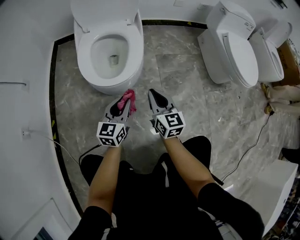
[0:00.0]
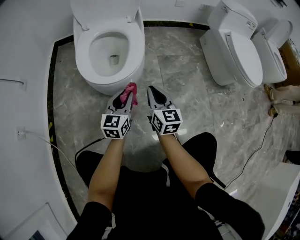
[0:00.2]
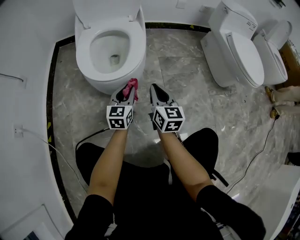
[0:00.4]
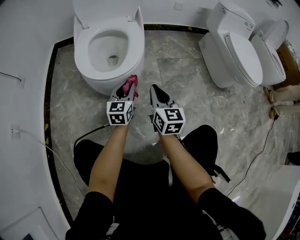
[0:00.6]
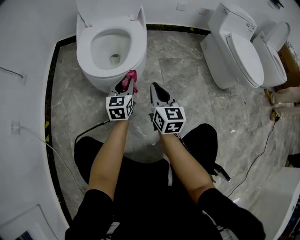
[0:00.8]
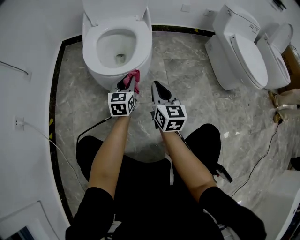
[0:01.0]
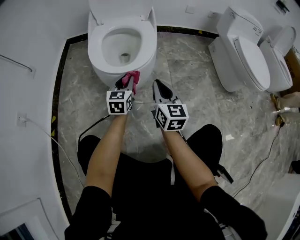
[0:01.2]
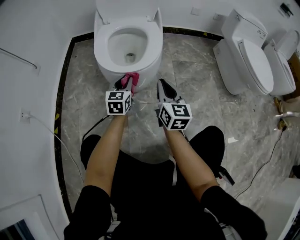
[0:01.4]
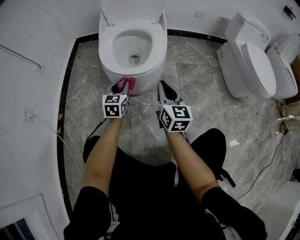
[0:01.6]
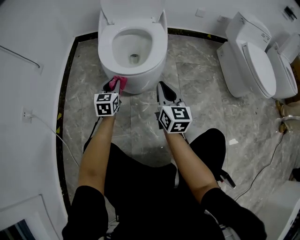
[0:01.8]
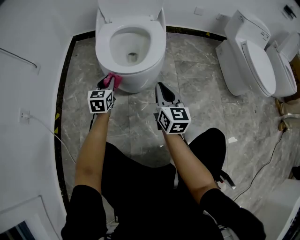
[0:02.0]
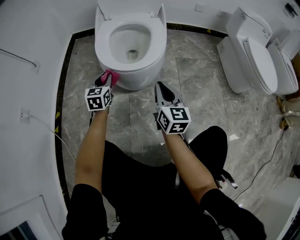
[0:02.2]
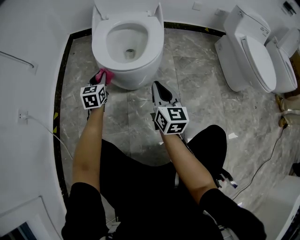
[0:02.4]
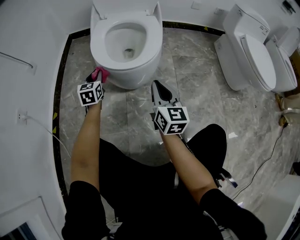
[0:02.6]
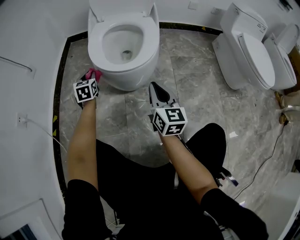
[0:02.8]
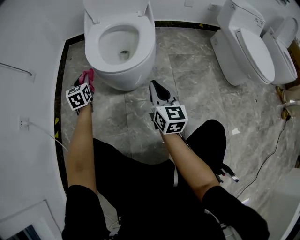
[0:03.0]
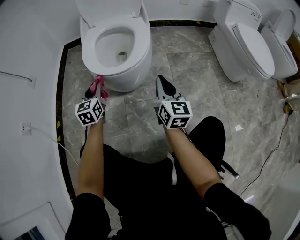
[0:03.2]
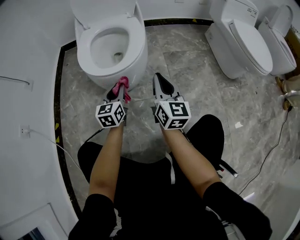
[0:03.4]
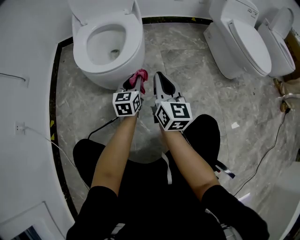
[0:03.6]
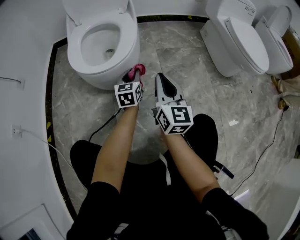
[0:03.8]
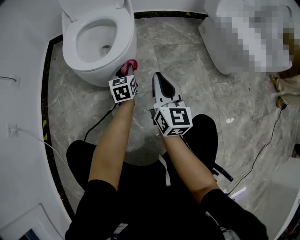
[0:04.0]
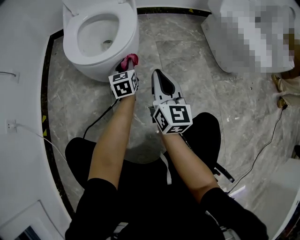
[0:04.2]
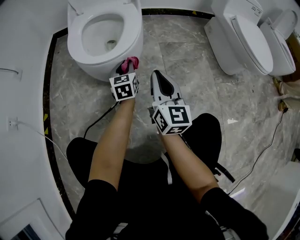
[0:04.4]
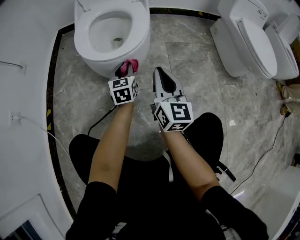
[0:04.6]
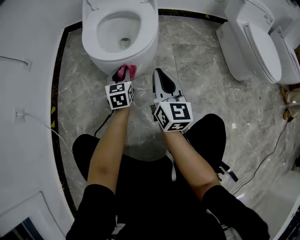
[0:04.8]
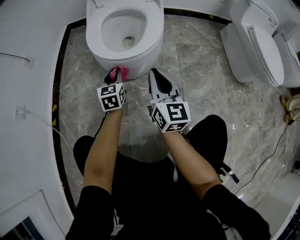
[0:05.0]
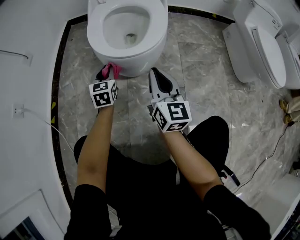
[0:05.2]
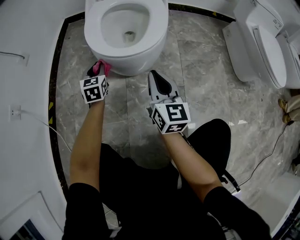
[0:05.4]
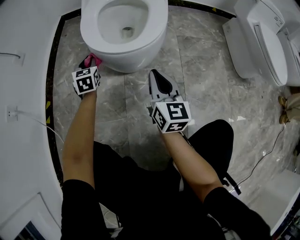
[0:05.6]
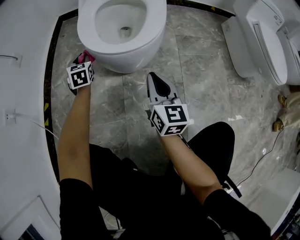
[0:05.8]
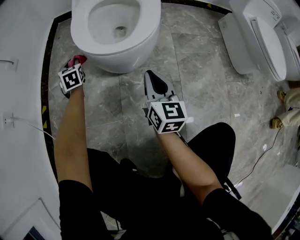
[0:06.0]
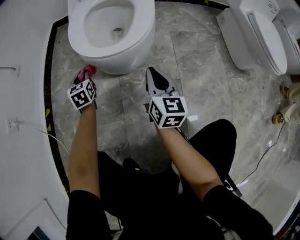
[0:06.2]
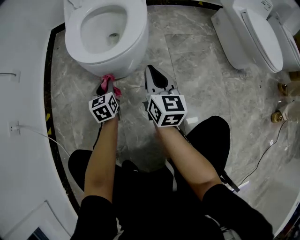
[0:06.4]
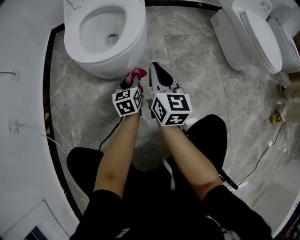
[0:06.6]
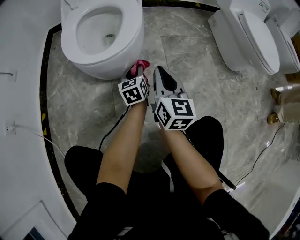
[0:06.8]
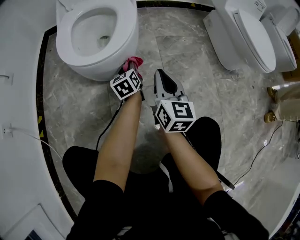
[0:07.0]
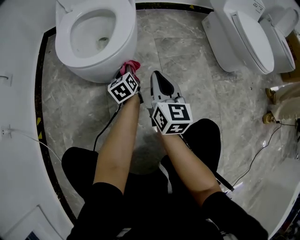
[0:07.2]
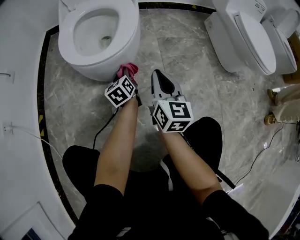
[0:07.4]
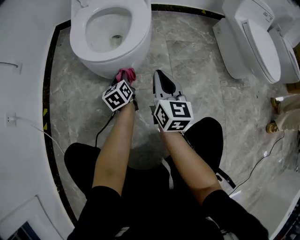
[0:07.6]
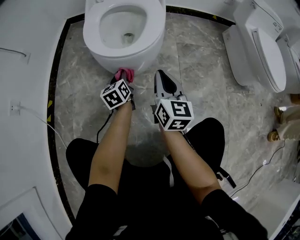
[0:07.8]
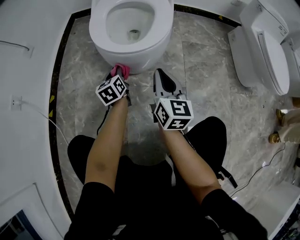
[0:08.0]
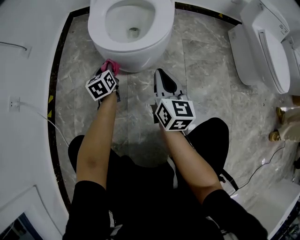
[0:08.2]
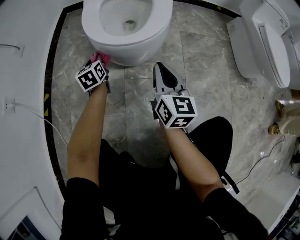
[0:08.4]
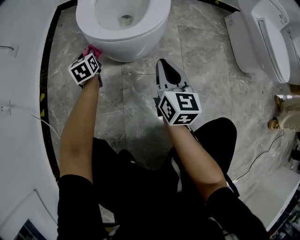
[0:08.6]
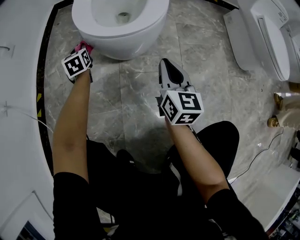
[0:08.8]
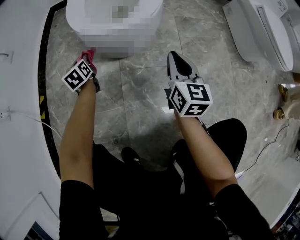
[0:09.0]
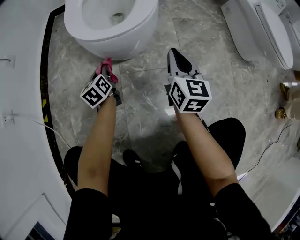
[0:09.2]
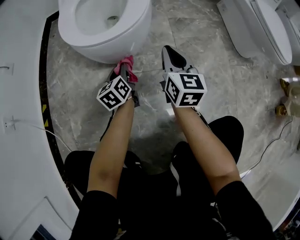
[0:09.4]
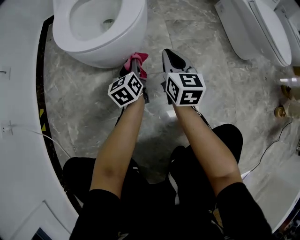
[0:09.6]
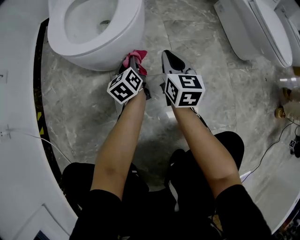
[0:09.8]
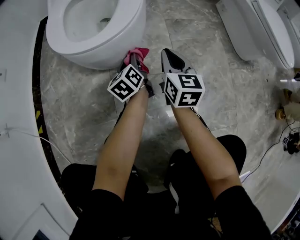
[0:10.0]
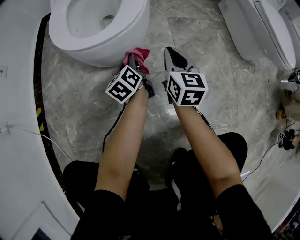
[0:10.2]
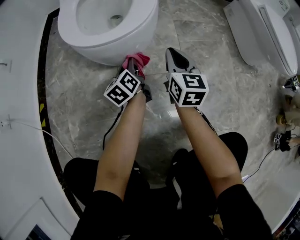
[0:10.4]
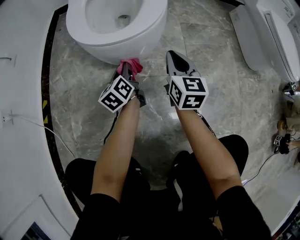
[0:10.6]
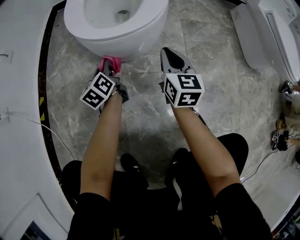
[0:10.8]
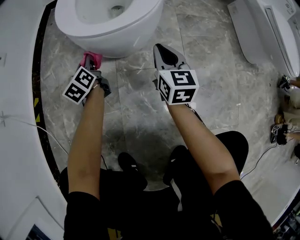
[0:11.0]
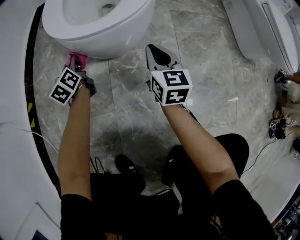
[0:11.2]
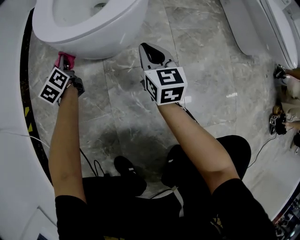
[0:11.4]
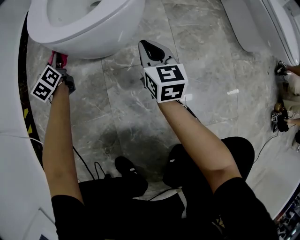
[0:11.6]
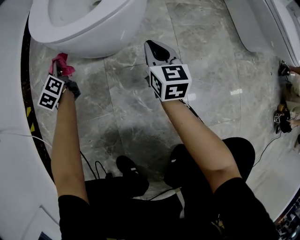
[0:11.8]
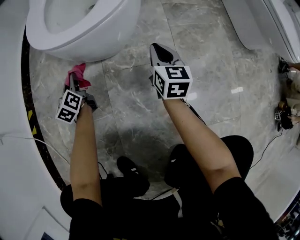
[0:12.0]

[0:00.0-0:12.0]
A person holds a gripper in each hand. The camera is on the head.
0:00.0 to 0:01.6: The right gripper changes place by about 5 cm; the left gripper shifts roughly 15 cm downward, to the left and forward.
0:01.6 to 0:03.0: The left gripper goes roughly 15 cm to the left.
0:03.0 to 0:04.4: The left gripper heads to the right, covering roughly 30 cm; the right gripper moves to the right, approximately 5 cm.
0:04.4 to 0:06.0: The right gripper is displaced to the left and downward by roughly 10 cm. The left gripper heads to the left, covering roughly 30 cm, and rotates roughly 30 degrees.
0:06.0 to 0:07.6: The right gripper travels to the right by about 5 cm. Meanwhile the left gripper is displaced to the right by approximately 25 cm, and turns by roughly 40 degrees.
0:07.6 to 0:09.0: The left gripper goes approximately 20 cm to the left.
0:09.0 to 0:10.4: The right gripper is displaced forward by roughly 5 cm. The left gripper shifts approximately 20 cm to the right, and changes its angle by some 30 degrees.
0:10.4 to 0:12.0: The left gripper moves to the left, some 20 cm. The right gripper moves downward, about 10 cm.

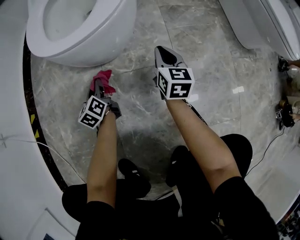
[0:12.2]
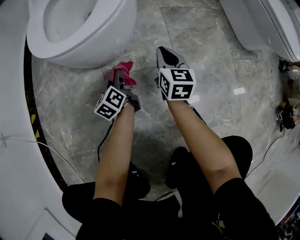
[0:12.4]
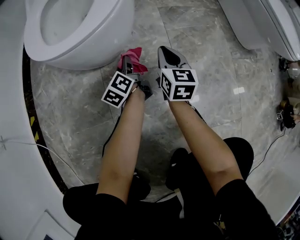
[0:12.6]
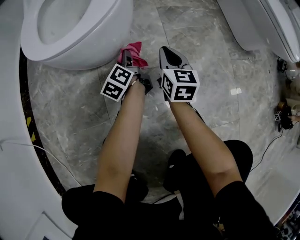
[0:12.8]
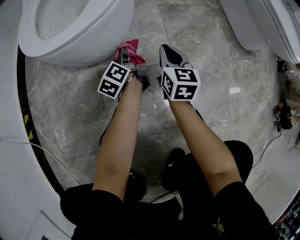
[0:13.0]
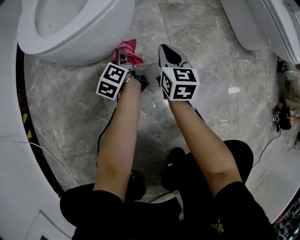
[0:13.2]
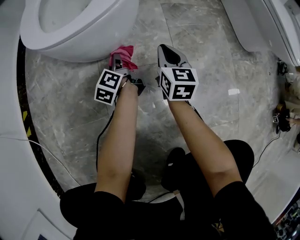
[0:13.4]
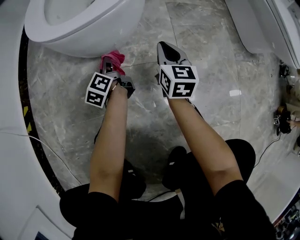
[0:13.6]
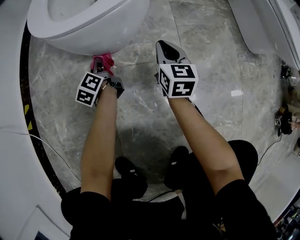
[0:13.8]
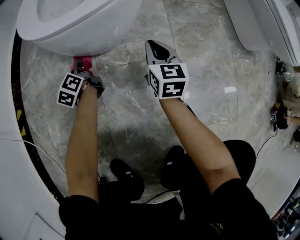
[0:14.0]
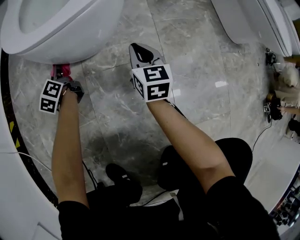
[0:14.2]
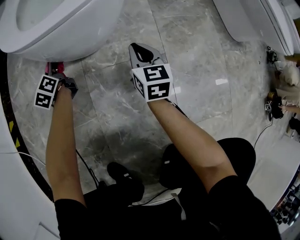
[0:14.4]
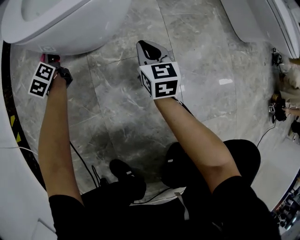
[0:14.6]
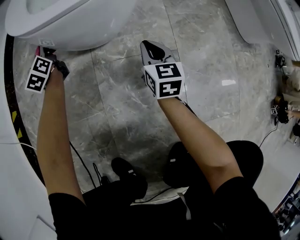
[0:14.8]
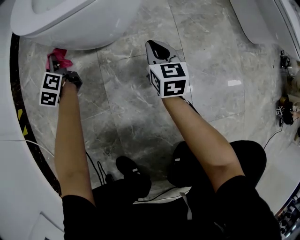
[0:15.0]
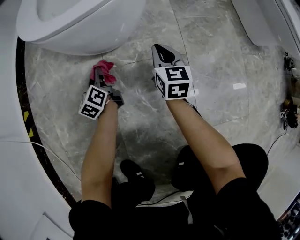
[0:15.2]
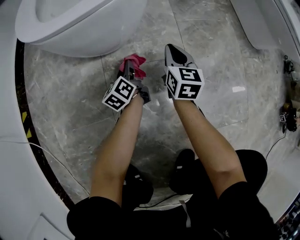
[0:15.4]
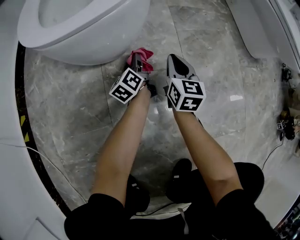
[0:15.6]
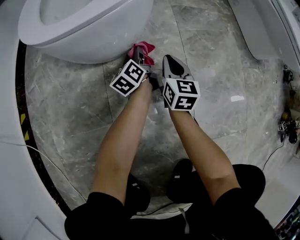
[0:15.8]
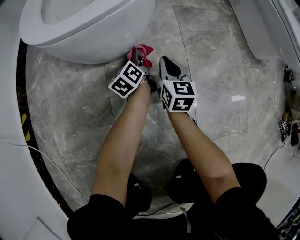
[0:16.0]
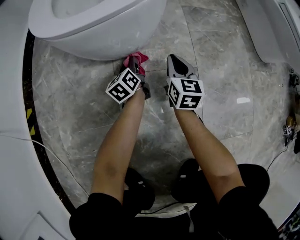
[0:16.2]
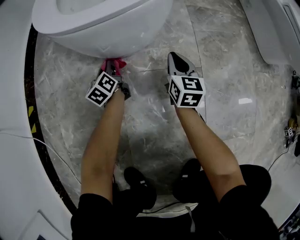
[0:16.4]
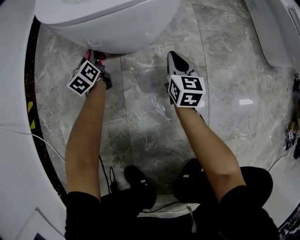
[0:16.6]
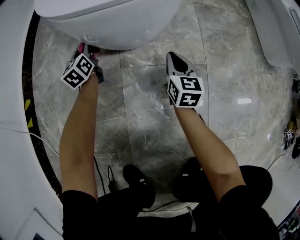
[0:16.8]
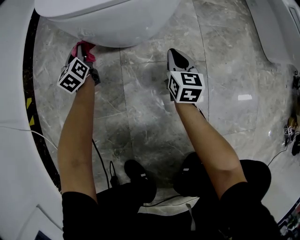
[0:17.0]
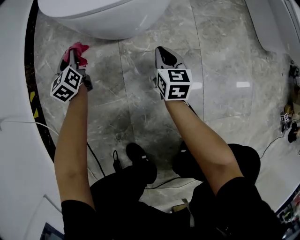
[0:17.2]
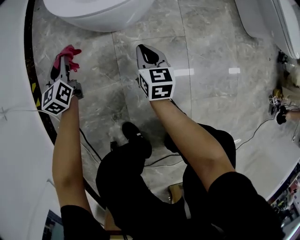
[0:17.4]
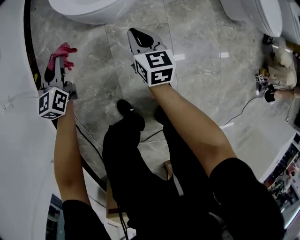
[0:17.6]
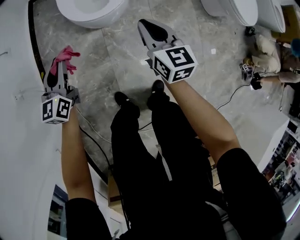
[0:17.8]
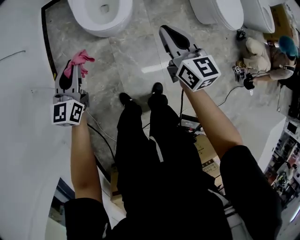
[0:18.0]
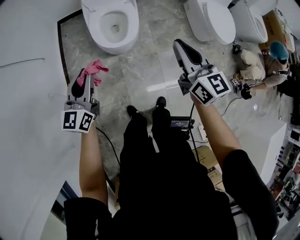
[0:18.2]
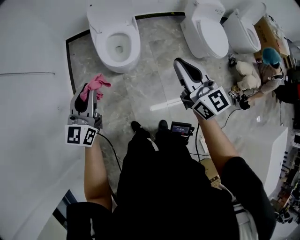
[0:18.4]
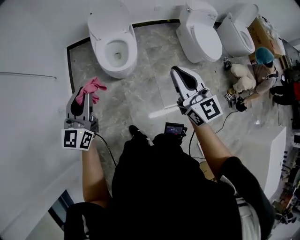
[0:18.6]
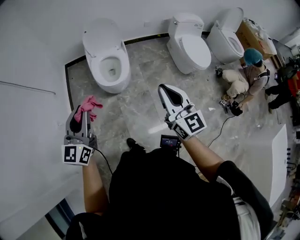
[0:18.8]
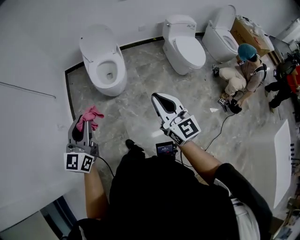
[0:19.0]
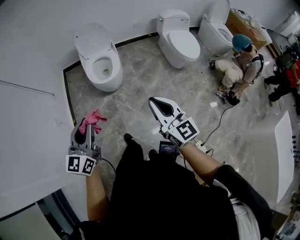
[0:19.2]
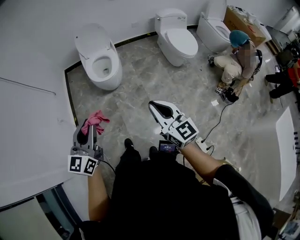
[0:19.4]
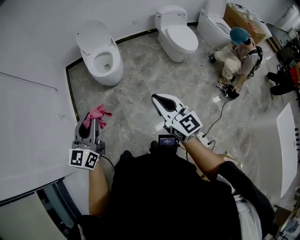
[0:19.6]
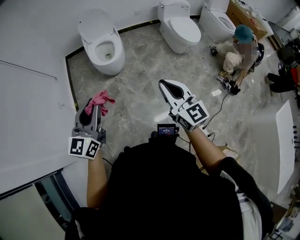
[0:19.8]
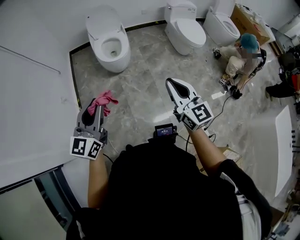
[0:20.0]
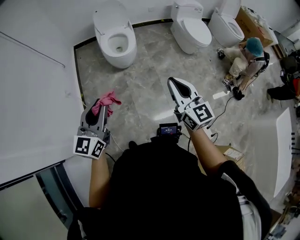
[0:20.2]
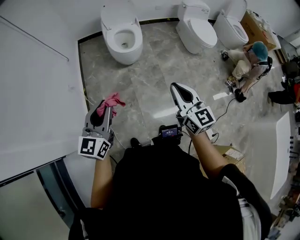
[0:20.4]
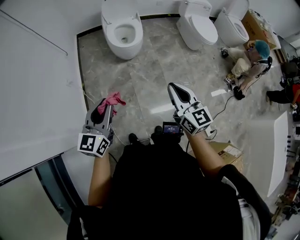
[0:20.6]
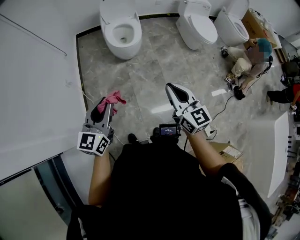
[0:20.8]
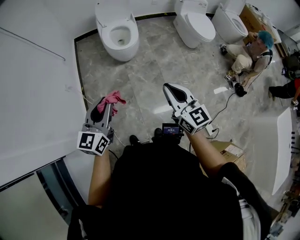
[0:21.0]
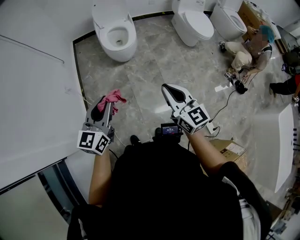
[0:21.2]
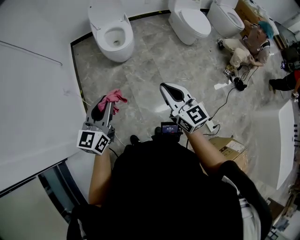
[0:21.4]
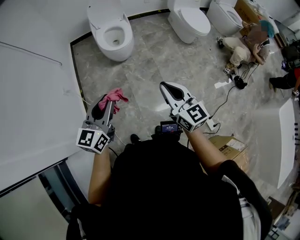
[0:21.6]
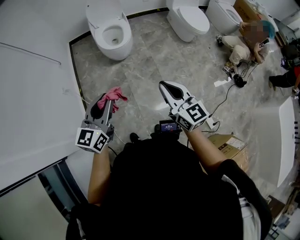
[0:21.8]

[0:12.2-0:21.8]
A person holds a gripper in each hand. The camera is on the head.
0:12.2 to 0:13.8: The left gripper is displaced forward by roughly 5 cm, and travels to the right and back again, roughly 15 cm each way.
0:13.8 to 0:15.4: The left gripper moves to the right, roughly 10 cm. Meanwhile the right gripper travels downward by roughly 5 cm.
0:15.4 to 0:17.0: The right gripper goes roughly 5 cm to the left. The left gripper travels to the left by approximately 25 cm, and rotates some 30 degrees.
0:17.0 to 0:18.6: Both grippers move upward, some 90 cm. The left gripper changes its angle by approximately 40 degrees. The right gripper swivels approximately 30 degrees.
0:18.6 to 0:20.2: The grippers both shift backward by about 30 cm.
0:20.2 to 0:21.8: The right gripper changes place by some 5 cm.

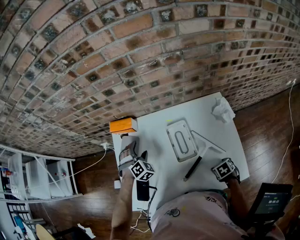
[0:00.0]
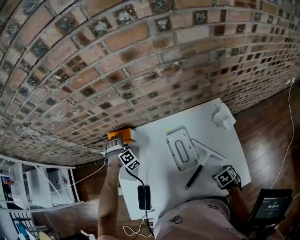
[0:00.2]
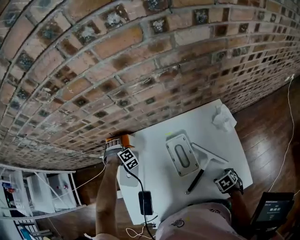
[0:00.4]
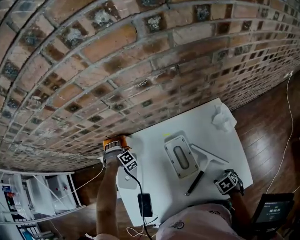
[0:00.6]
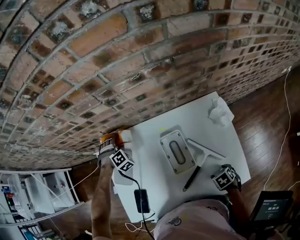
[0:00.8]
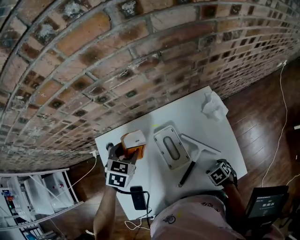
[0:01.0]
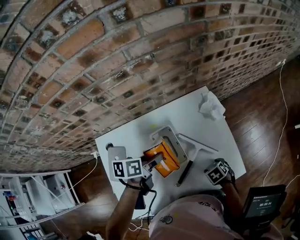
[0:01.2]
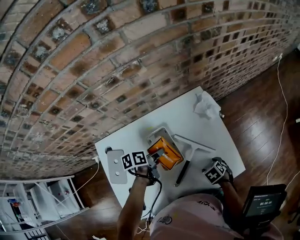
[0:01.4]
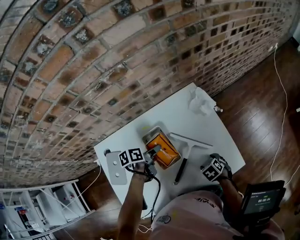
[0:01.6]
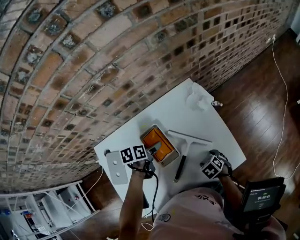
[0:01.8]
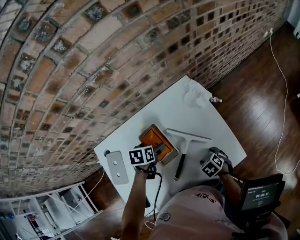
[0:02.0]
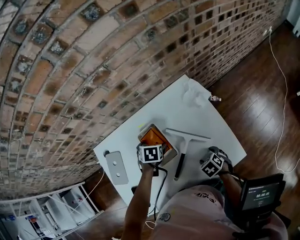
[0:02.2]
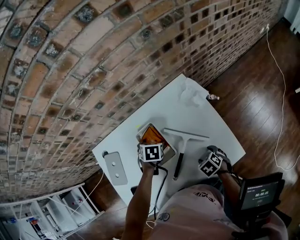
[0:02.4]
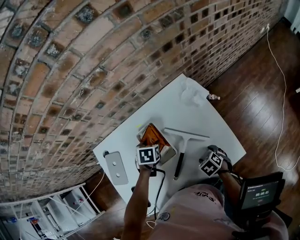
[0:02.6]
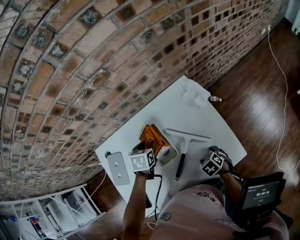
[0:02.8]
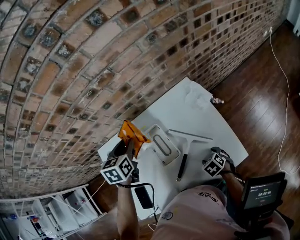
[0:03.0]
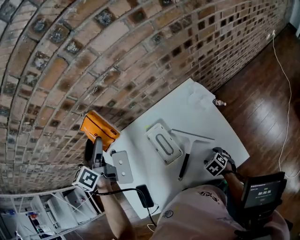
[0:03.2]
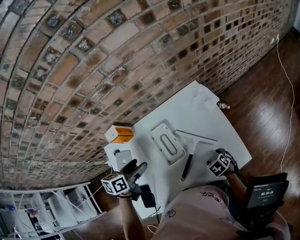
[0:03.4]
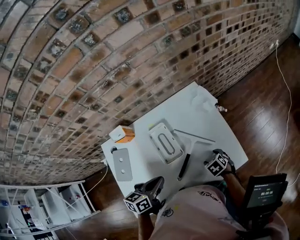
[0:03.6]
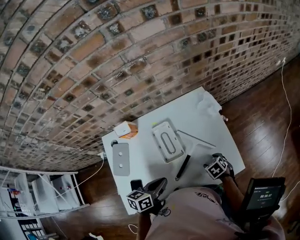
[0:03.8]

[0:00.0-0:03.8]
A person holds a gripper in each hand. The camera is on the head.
0:00.0 to 0:01.2: The left gripper changes place by some 20 cm, and swivels about 100 degrees.
0:01.2 to 0:02.6: The left gripper is displaced downward by about 10 cm, swivels about 50 degrees, and opens, then closes again.
0:02.6 to 0:03.8: The left gripper moves roughly 30 cm upward and comes back, points its fingers approximately 40 degrees further upward, and closes up.
